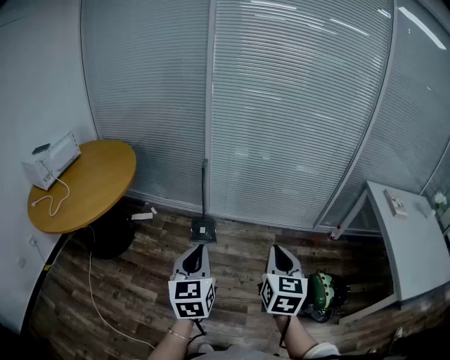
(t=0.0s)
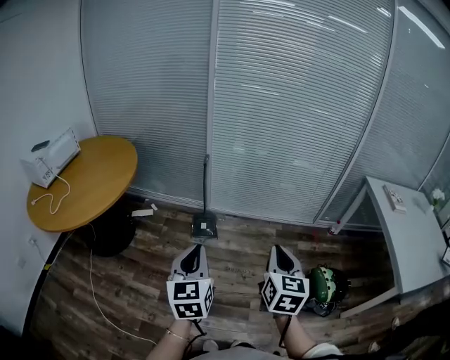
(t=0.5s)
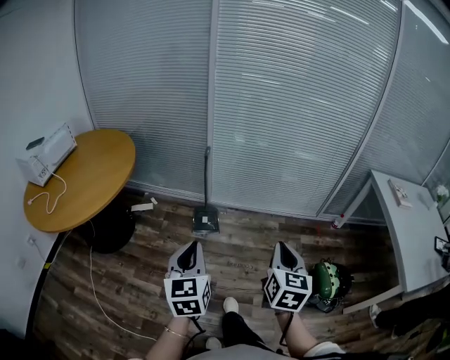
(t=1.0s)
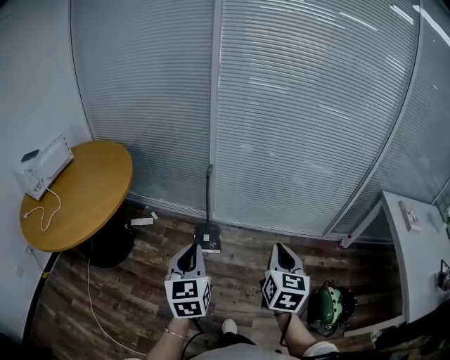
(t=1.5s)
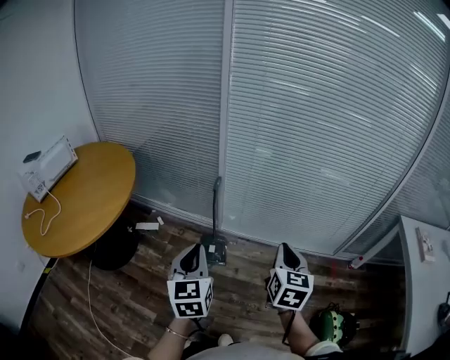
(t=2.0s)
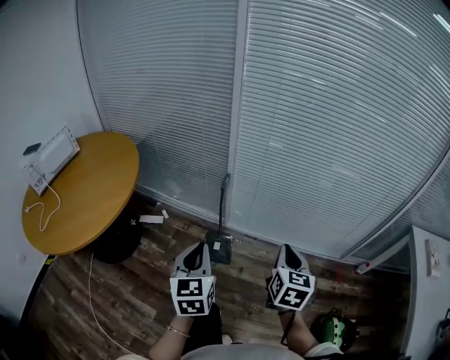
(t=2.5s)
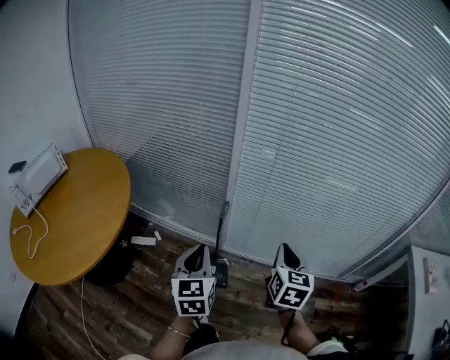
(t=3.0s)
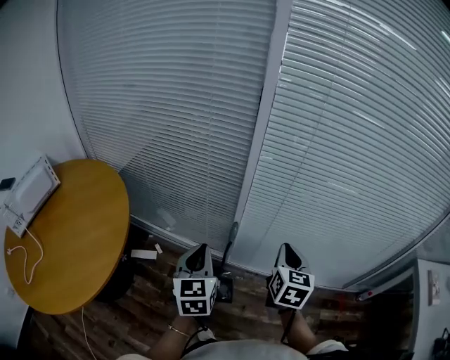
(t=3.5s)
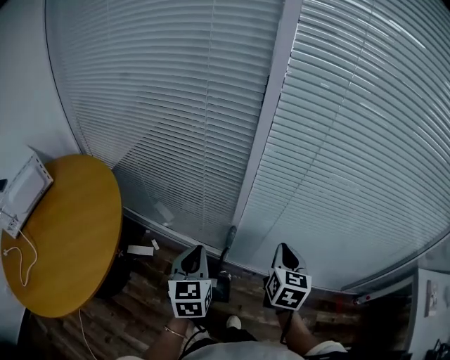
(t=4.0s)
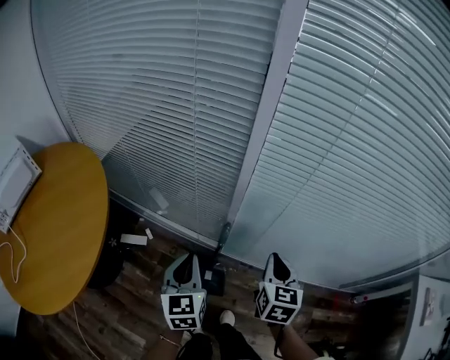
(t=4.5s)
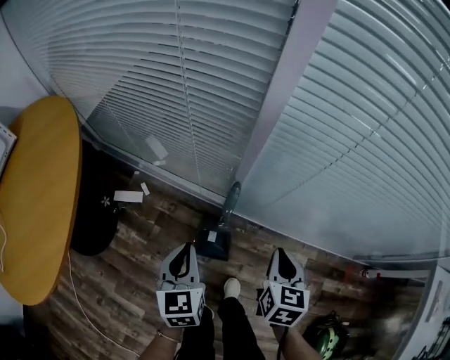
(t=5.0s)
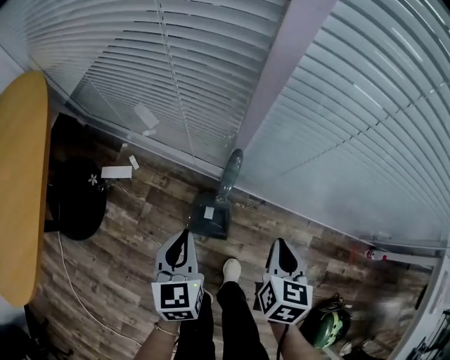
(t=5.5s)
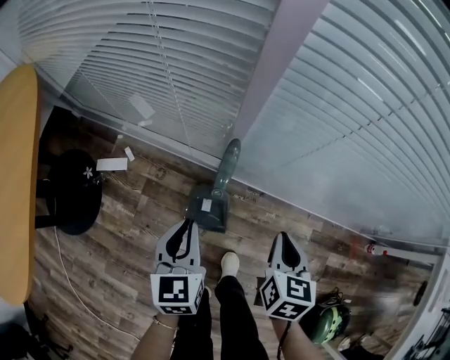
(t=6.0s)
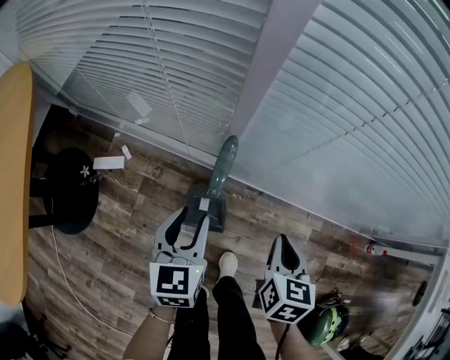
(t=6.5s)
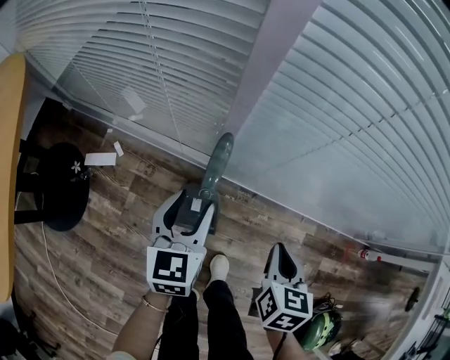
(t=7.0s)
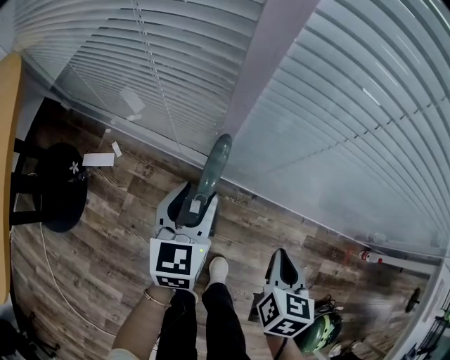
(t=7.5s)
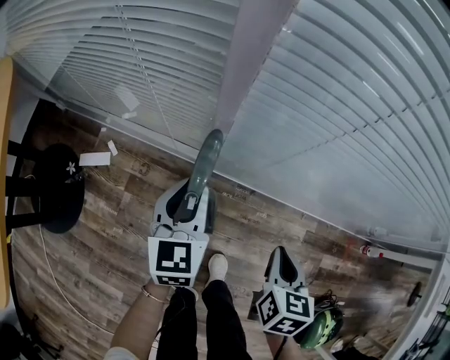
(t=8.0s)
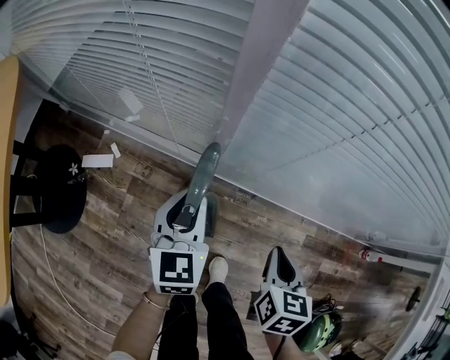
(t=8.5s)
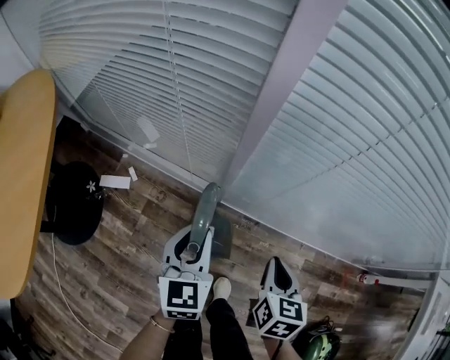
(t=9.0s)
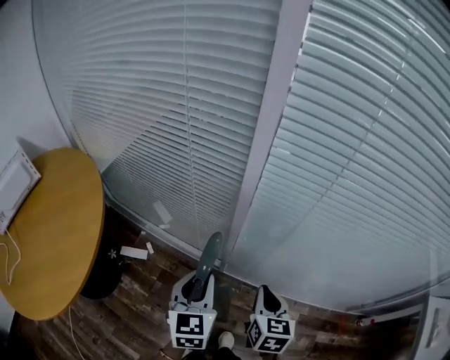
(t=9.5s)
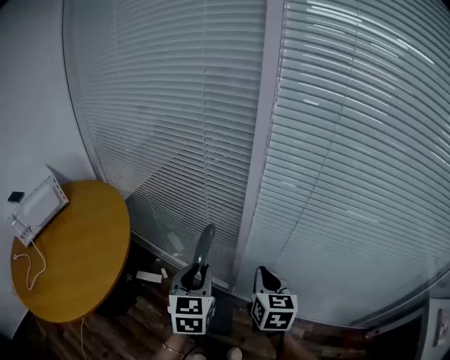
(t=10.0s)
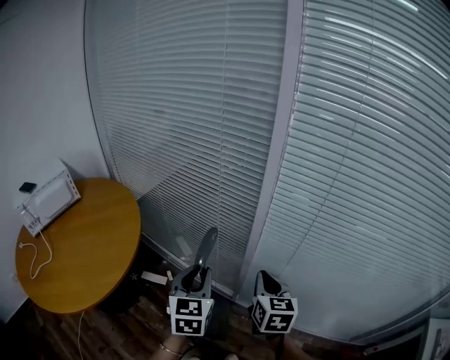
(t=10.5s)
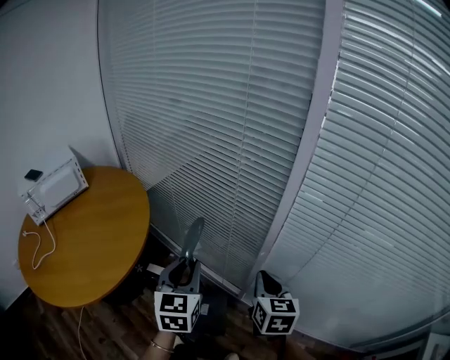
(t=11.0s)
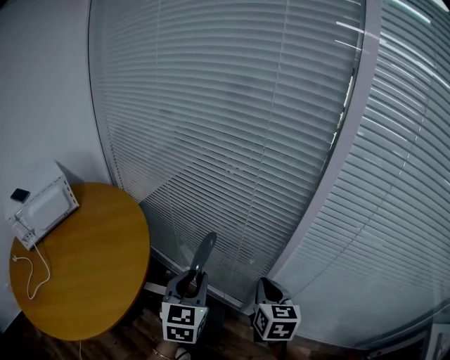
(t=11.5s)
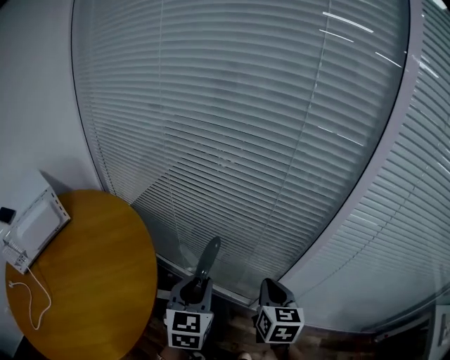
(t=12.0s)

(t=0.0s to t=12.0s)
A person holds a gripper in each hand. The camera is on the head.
t=0.0s - t=2.0s: Both grippers travel together forward, approximately 25 cm.
t=2.0s - t=4.0s: The two grippers go about 35 cm forward.
t=4.0s - t=6.0s: The two grippers go roughly 25 cm downward. The right gripper rotates some 20 degrees.
t=6.0s - t=8.0s: The left gripper shifts about 10 cm forward, and opens its fingers. Meanwhile the right gripper shifts by approximately 5 cm.
t=8.0s - t=10.0s: The left gripper goes some 35 cm upward. The right gripper is displaced upward and to the left by some 35 cm, and changes its angle by some 30 degrees.
t=10.0s - t=12.0s: The two grippers go roughly 20 cm to the left and forward.

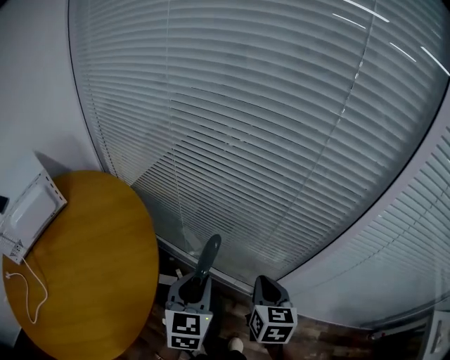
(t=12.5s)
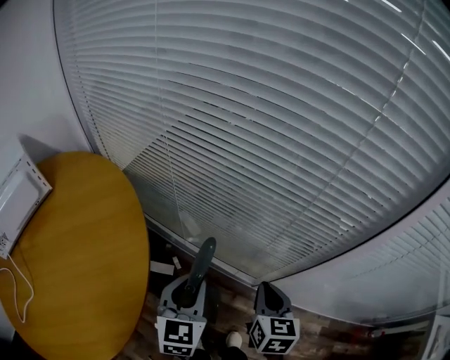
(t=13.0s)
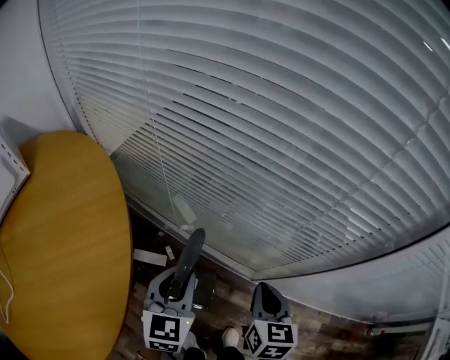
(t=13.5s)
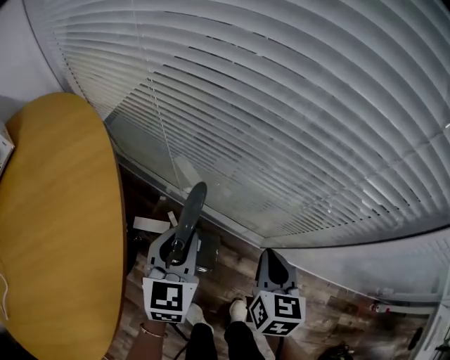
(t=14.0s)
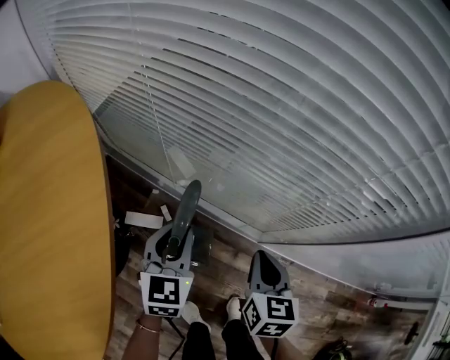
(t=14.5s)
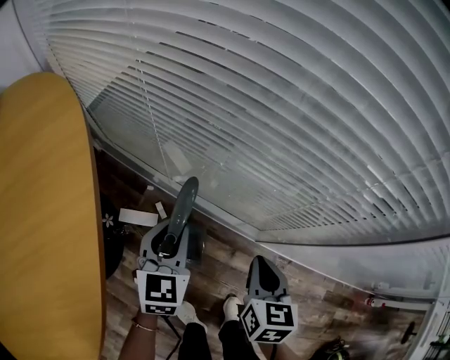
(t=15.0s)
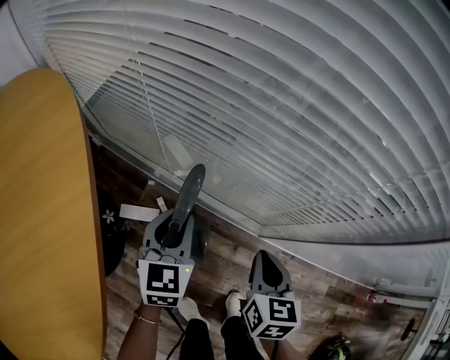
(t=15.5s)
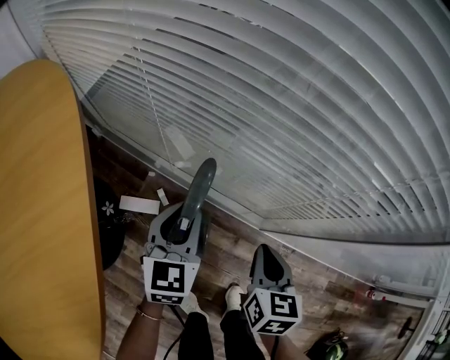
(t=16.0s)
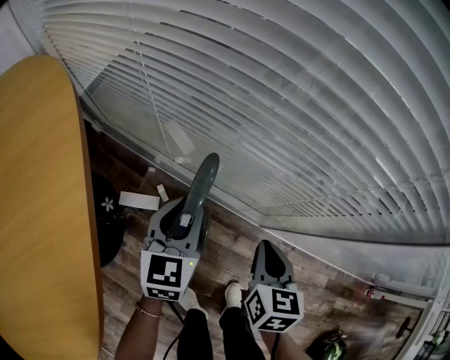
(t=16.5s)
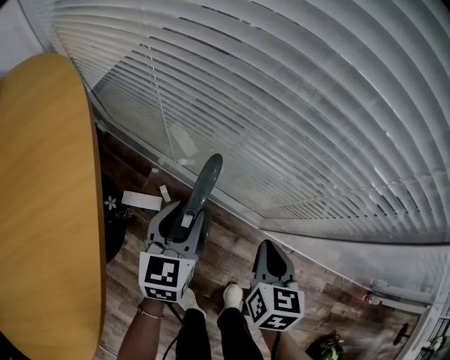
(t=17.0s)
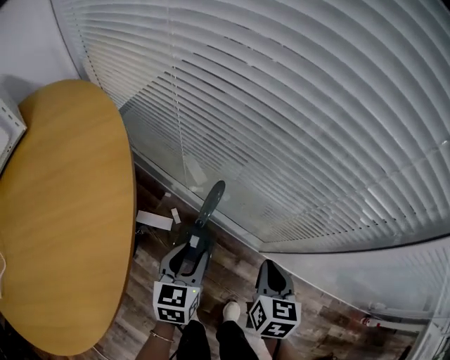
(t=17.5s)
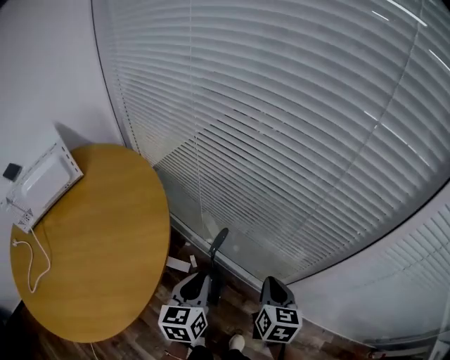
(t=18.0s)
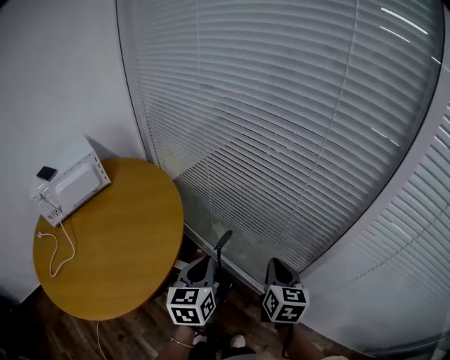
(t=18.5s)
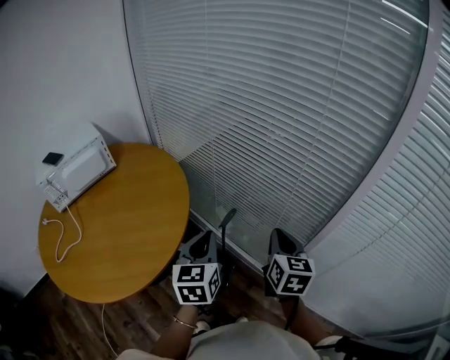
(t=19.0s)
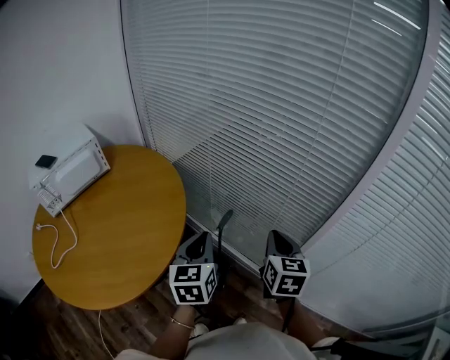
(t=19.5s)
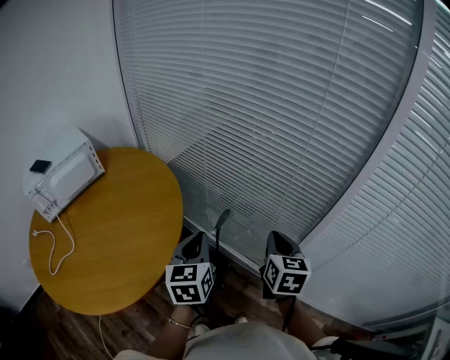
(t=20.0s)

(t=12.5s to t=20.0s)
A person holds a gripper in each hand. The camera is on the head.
t=12.5s - t=14.5s: The grippers both shift downward by roughly 20 cm.
t=14.5s - t=16.5s: The grippers move only a little.
t=16.5s - t=18.0s: The right gripper heads upward, covering some 15 cm. Meanwhile the left gripper moves upward and backward, about 20 cm, and changes its angle by some 20 degrees.
t=18.0s - t=20.0s: Both grippers travel together upward, about 15 cm.

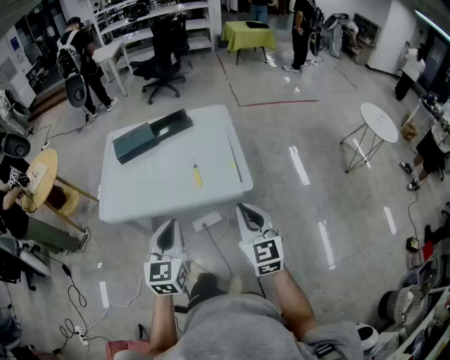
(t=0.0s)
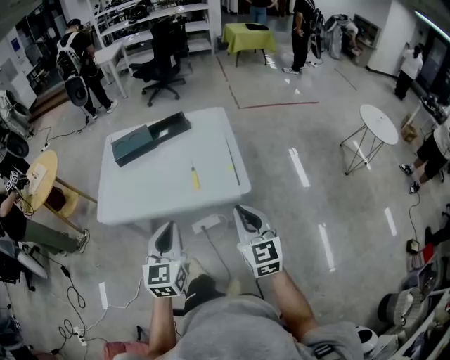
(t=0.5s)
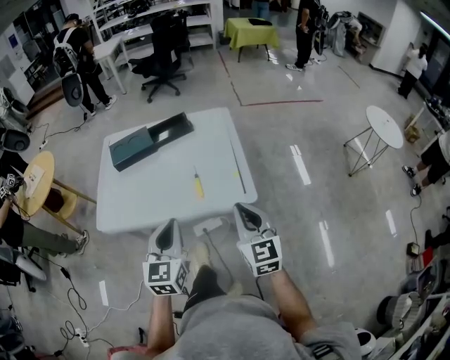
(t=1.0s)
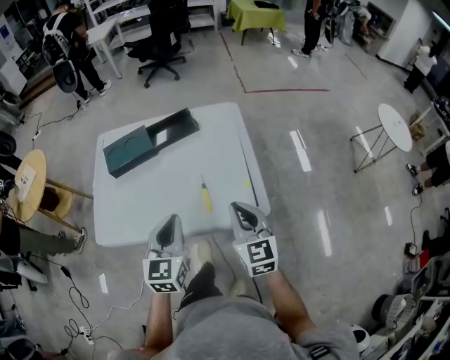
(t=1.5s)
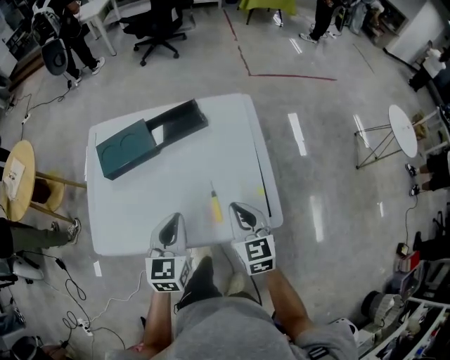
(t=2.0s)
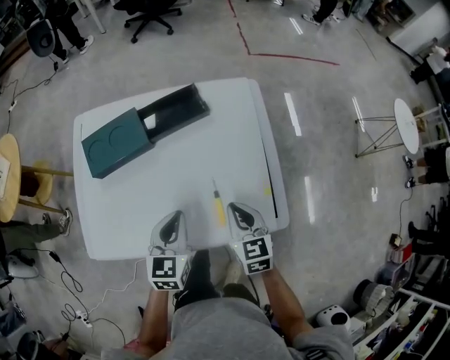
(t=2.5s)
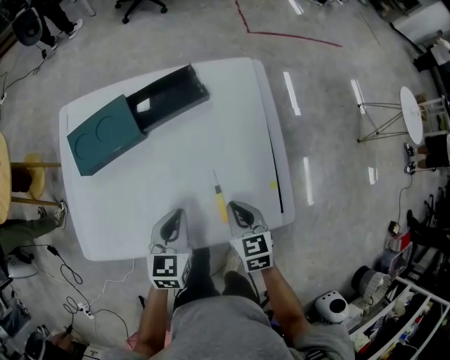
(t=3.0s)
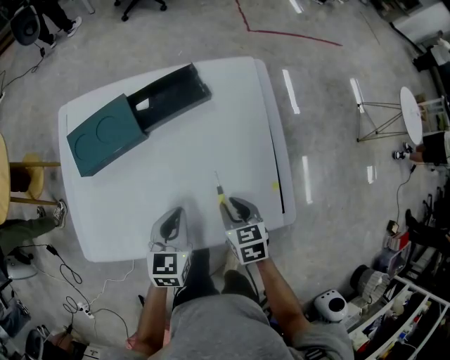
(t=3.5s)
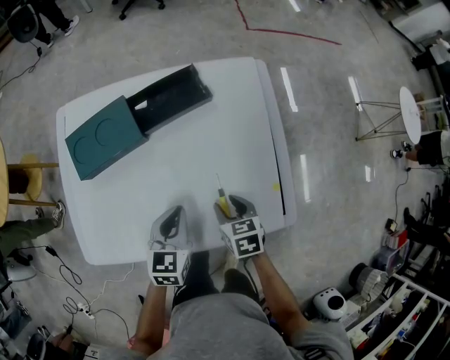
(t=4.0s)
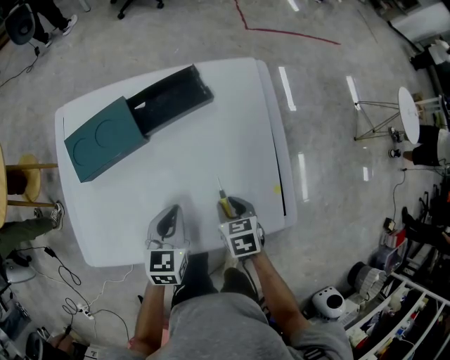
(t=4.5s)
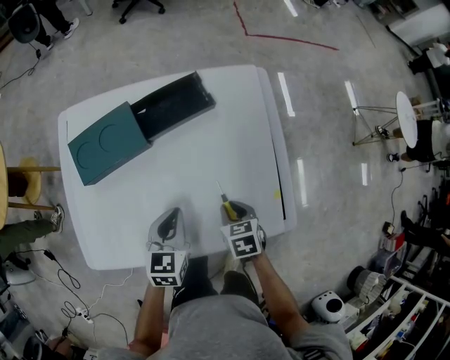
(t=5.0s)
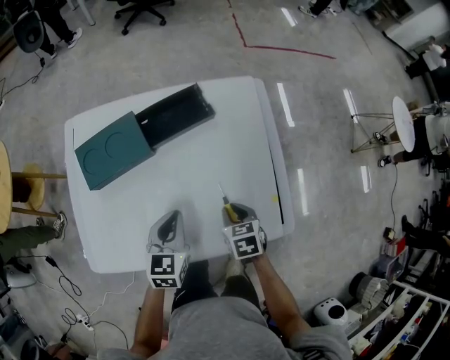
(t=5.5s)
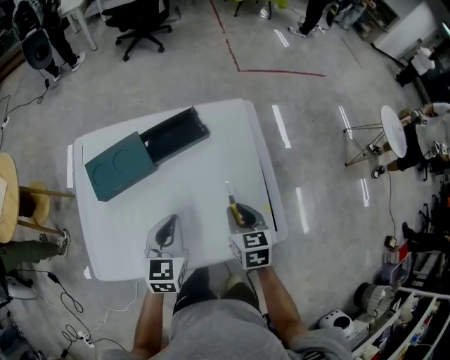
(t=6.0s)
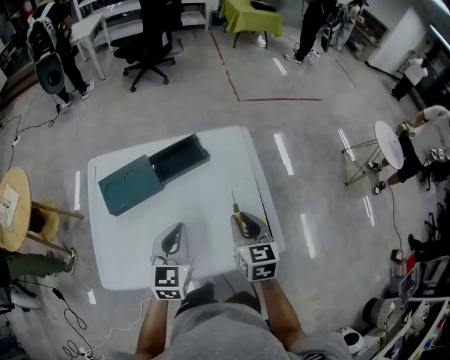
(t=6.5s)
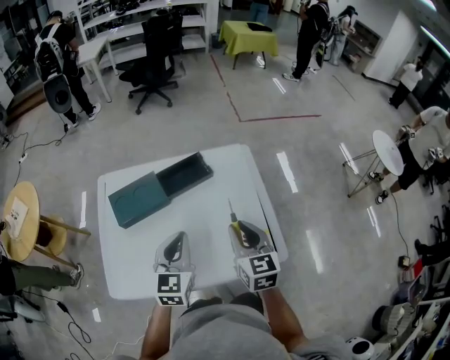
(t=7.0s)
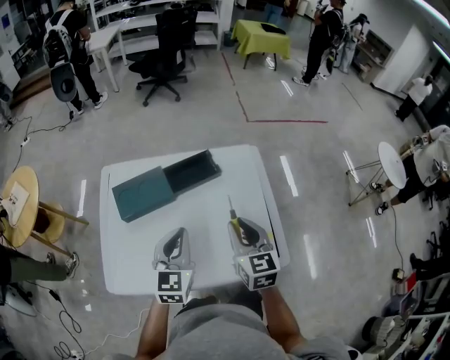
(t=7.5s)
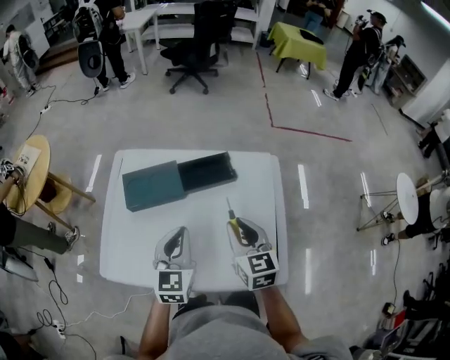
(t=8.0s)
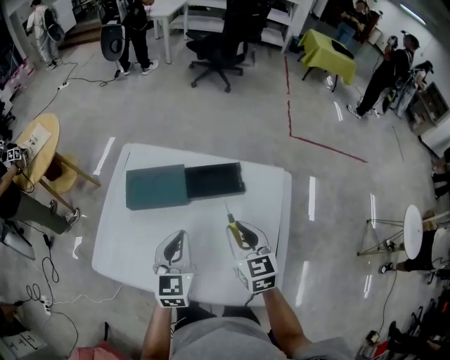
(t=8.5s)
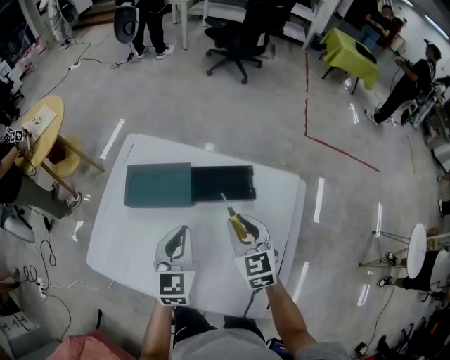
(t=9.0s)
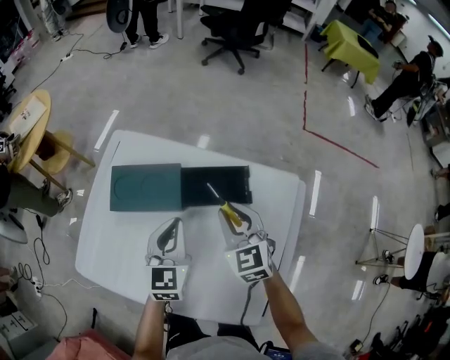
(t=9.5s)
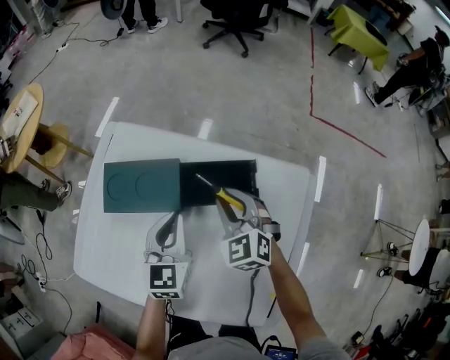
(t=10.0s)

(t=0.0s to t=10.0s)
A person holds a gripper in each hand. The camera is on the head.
t=0.0s - t=2.0s: The two grippers go about 25 cm forward.
t=2.0s - t=4.0s: The right gripper is displaced downward by roughly 20 cm, changes its angle by roughly 30 degrees, and opens up, while the left gripper heads downward and forward, covering some 15 cm.
t=4.0s - t=6.0s: Both grippers move upward, roughly 10 cm. The right gripper closes up.
t=6.0s - t=8.0s: Both grippers move upward, some 10 cm. The right gripper changes its angle by some 30 degrees.
t=8.0s - t=10.0s: Both grippers travel together forward and downward, roughly 25 cm. The right gripper rolls counterclockwise, seen from behind, by about 40 degrees.
